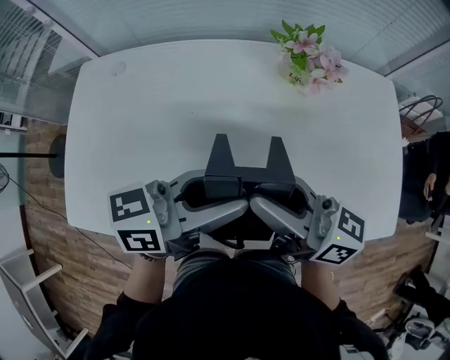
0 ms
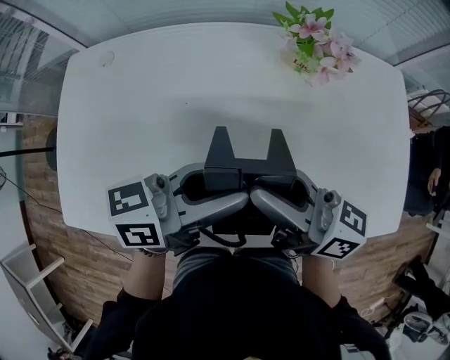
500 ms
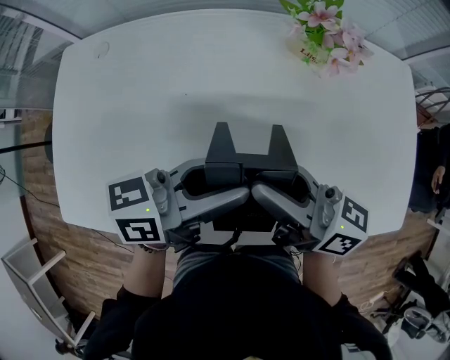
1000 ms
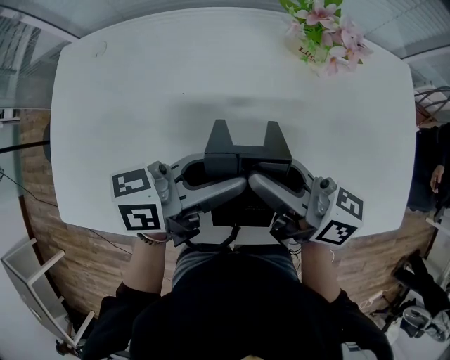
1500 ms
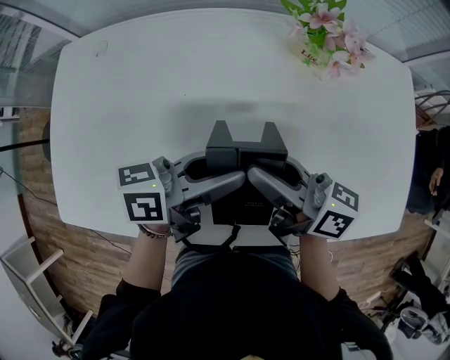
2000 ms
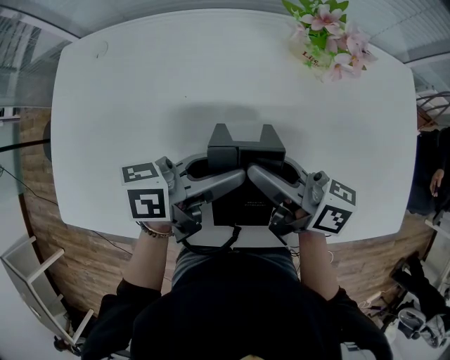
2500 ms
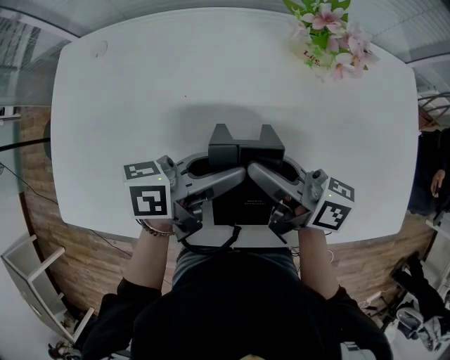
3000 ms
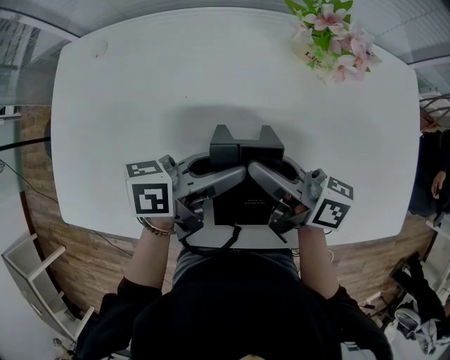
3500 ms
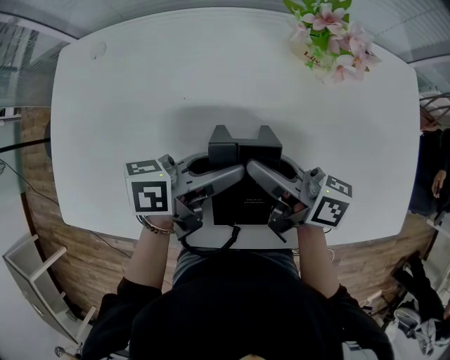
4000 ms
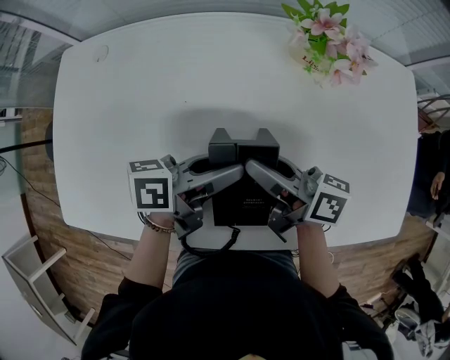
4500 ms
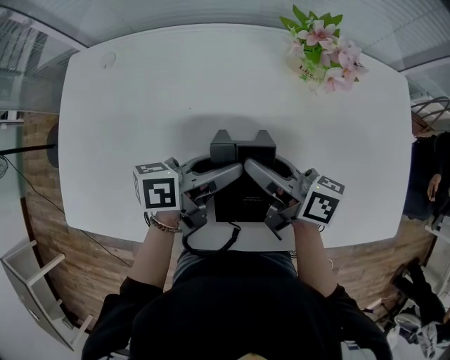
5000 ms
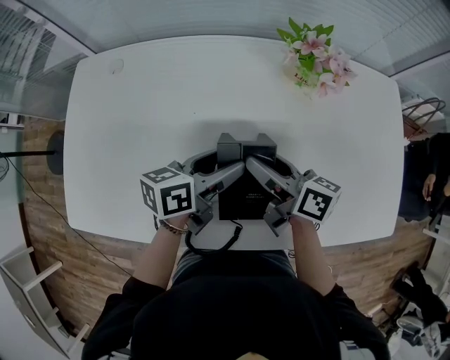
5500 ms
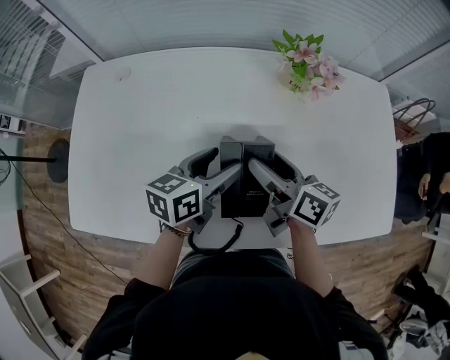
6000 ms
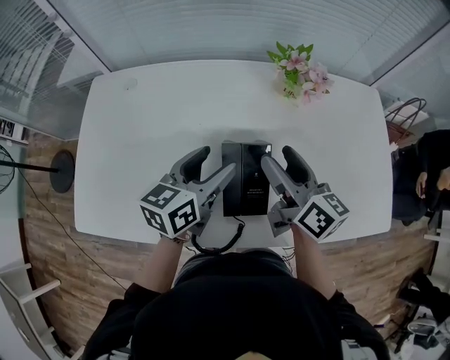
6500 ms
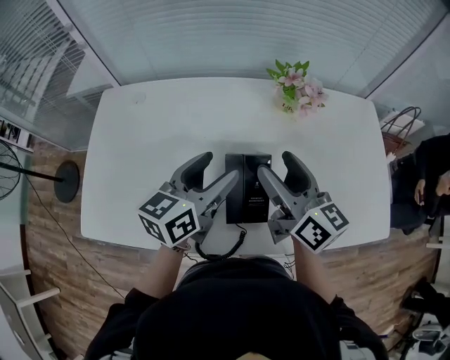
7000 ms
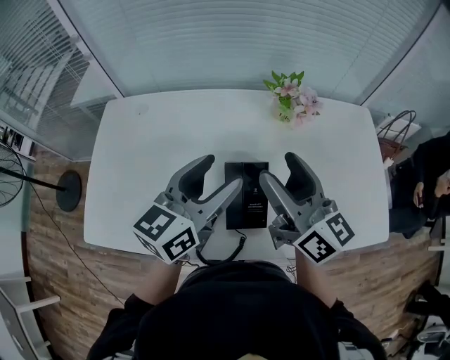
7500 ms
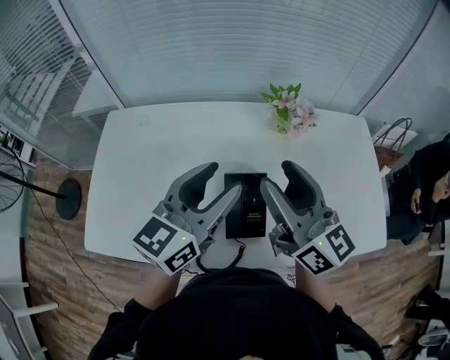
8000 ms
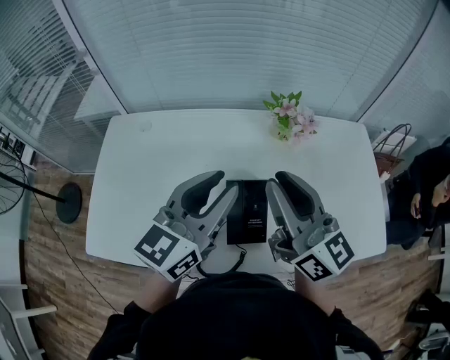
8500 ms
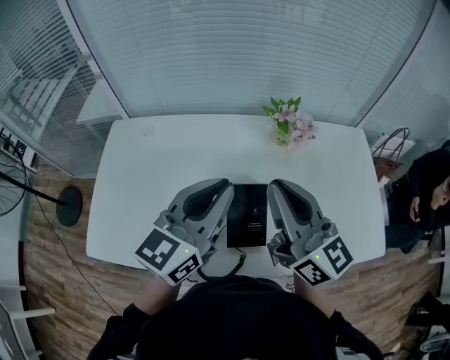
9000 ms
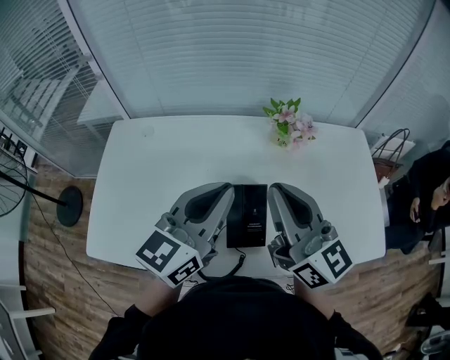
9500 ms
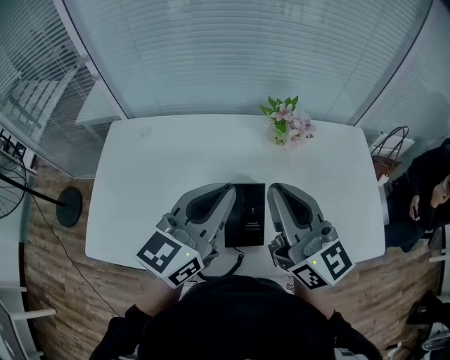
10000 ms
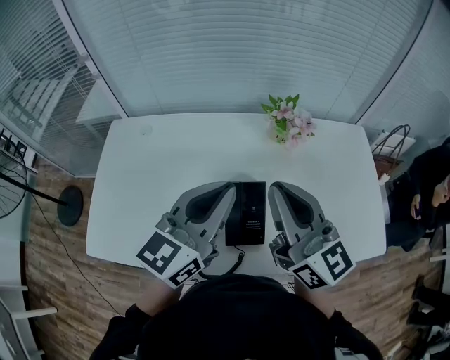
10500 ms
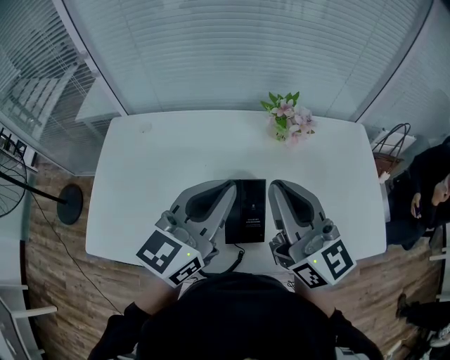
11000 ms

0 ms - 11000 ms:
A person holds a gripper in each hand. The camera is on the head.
0 ms - 2000 ms: Both grippers move downward, approximately 10 cm.
2000 ms - 5500 ms: There are only small adjustments of the grippers.
5500 ms - 7500 ms: The grippers both shift upward by about 20 cm. The left gripper changes its angle by about 40 degrees; the right gripper turns by approximately 40 degrees.
7500 ms - 9000 ms: The two grippers go about 5 cm upward. The left gripper closes; the right gripper closes.
9000 ms - 11000 ms: The grippers make only small movements.

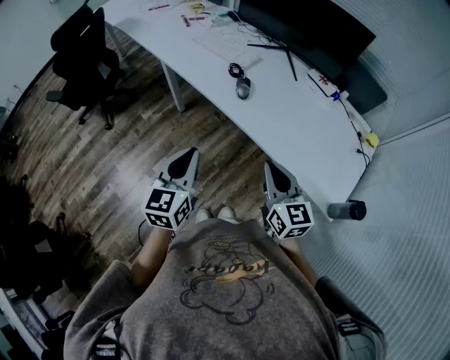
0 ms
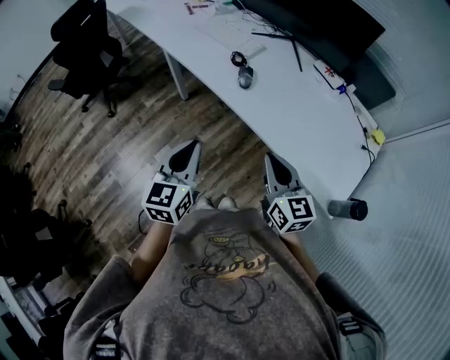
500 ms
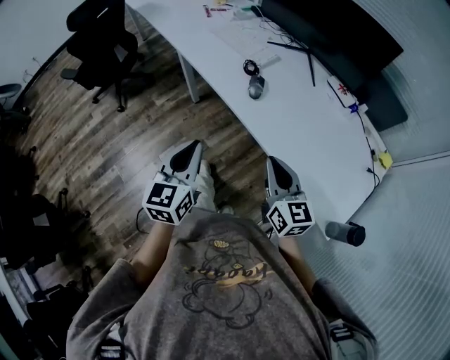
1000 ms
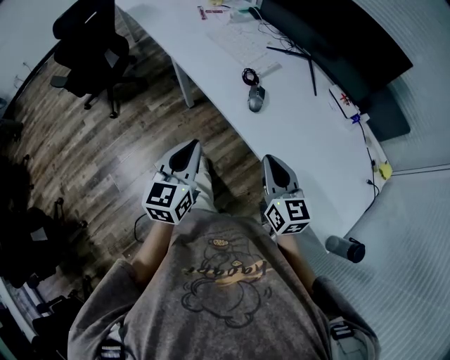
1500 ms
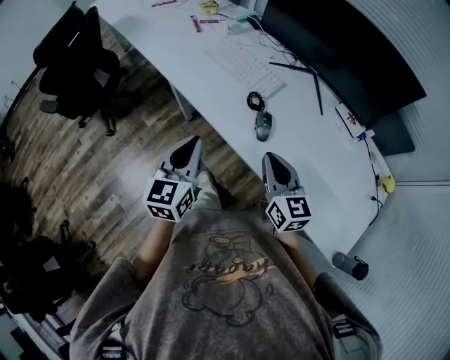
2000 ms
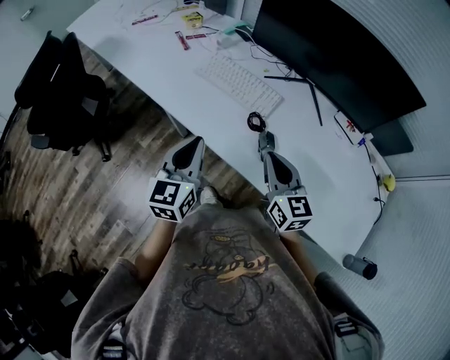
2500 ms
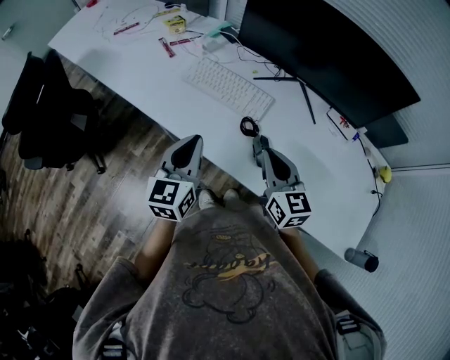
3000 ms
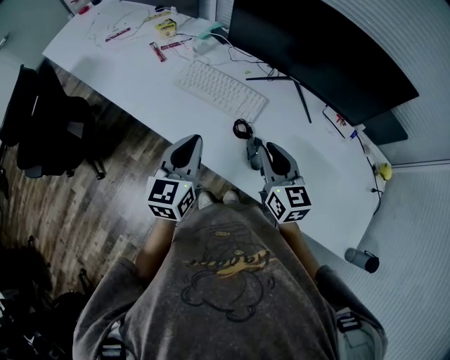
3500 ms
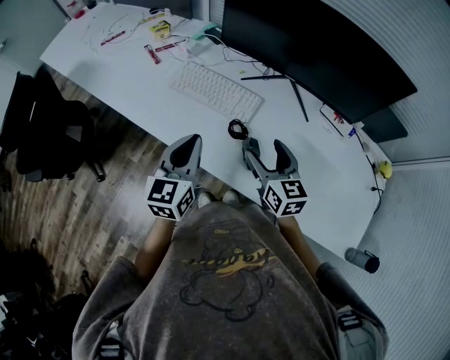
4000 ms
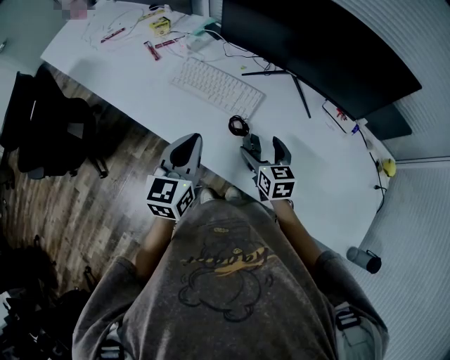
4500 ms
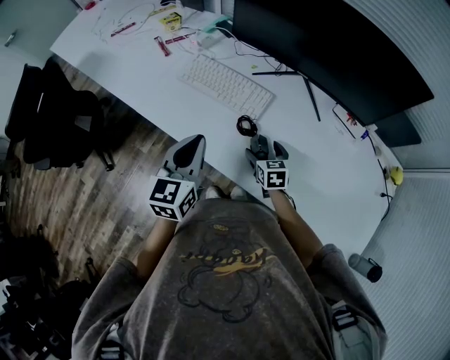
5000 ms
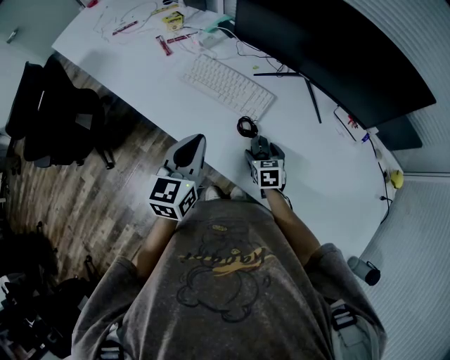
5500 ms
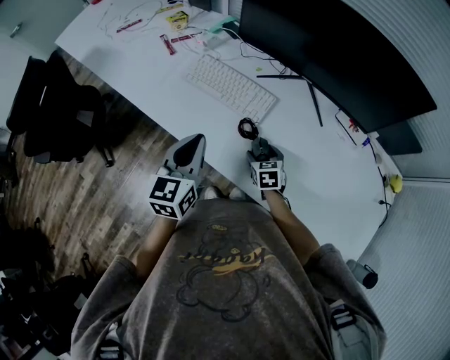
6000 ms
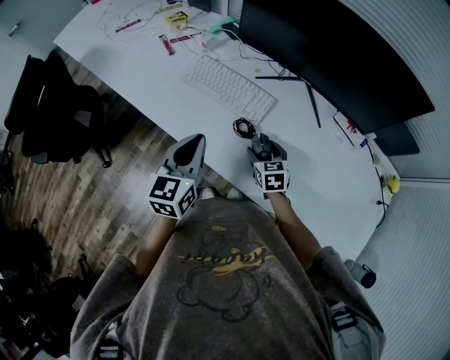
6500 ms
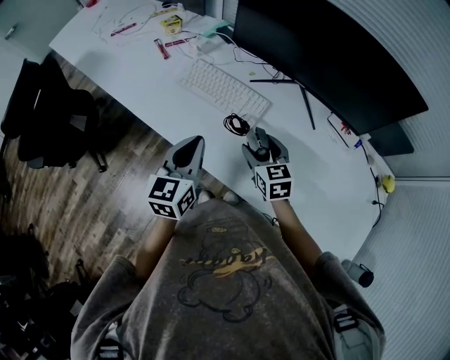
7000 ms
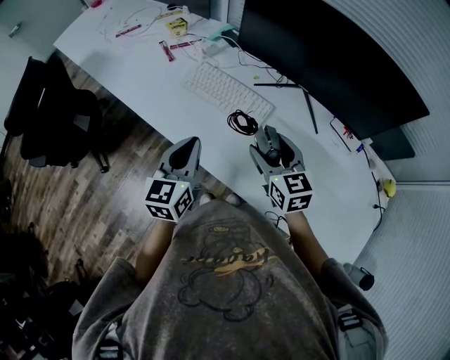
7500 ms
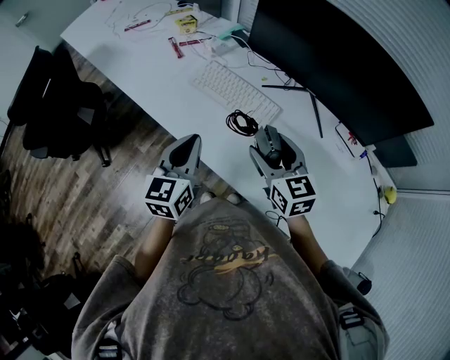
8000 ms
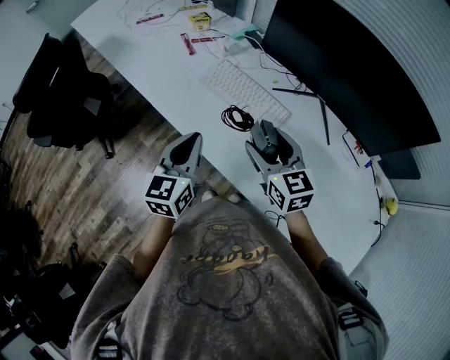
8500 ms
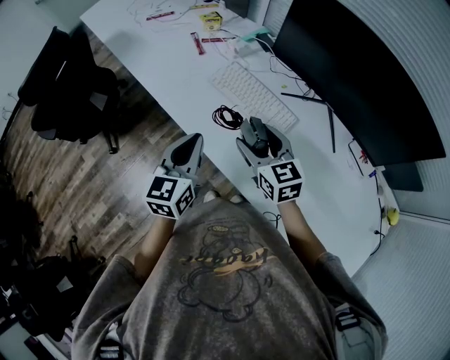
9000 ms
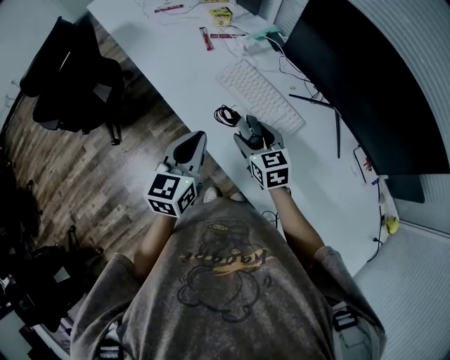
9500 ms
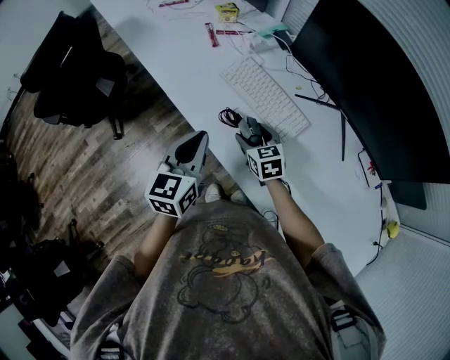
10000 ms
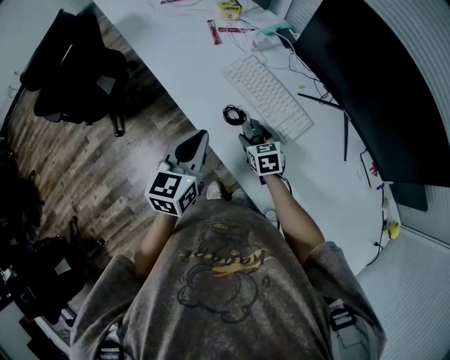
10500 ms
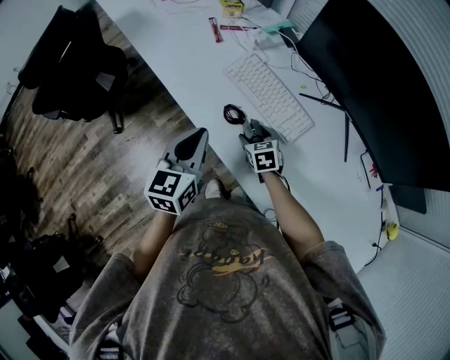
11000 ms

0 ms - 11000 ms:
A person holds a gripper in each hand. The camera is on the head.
0 ms - 2000 ms: Both grippers move forward, about 25 cm.
2000 ms - 3500 ms: The two grippers go roughly 15 cm forward.
3500 ms - 5500 ms: The right gripper heads downward, covering about 25 cm, angles its fingers downward, by some 30 degrees, and opens up.
5500 ms - 7500 ms: The right gripper shifts about 20 cm upward, and swivels approximately 30 degrees.
7500 ms - 9000 ms: The left gripper moves to the left, about 5 cm; the right gripper travels to the left and forward by approximately 10 cm.
9000 ms - 11000 ms: The right gripper is displaced downward by approximately 20 cm, and rotates about 30 degrees.

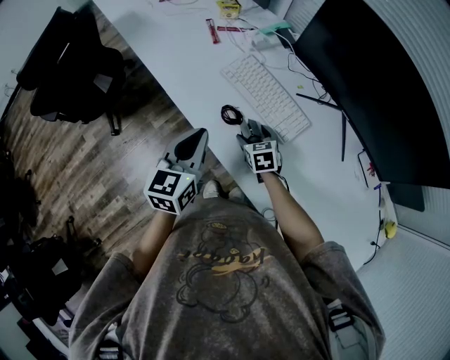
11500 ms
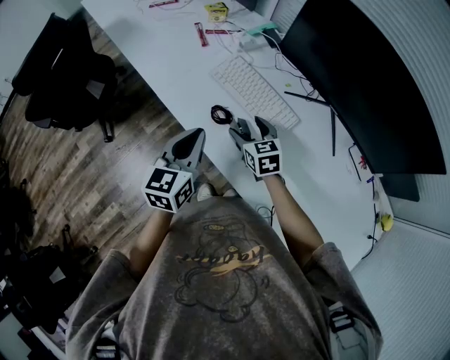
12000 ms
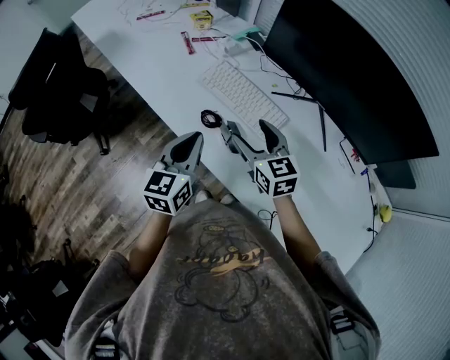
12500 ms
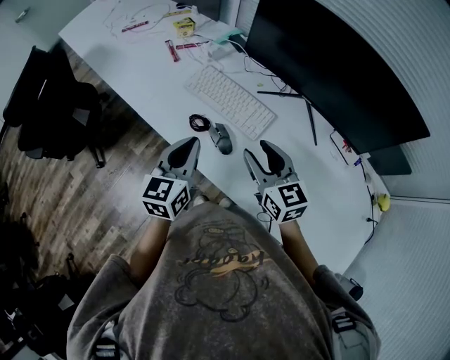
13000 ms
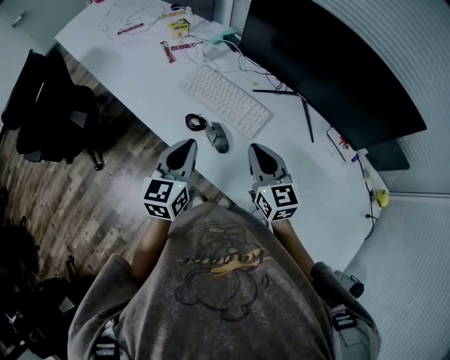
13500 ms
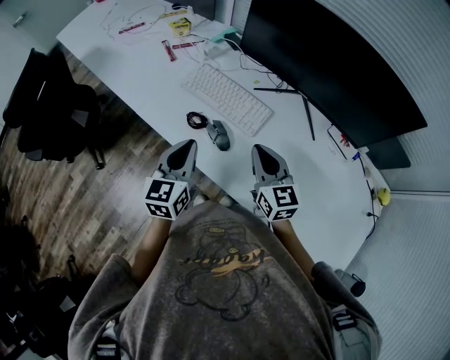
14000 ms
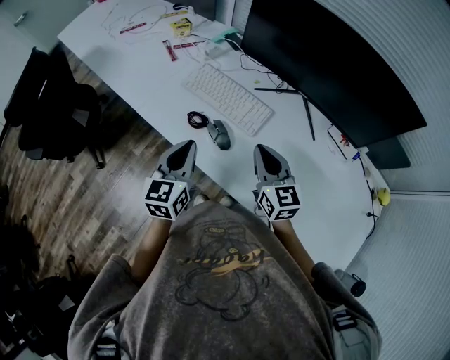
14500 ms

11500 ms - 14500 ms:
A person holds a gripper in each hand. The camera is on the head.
11500 ms - 13000 ms: The left gripper shifts approximately 5 cm to the right, while the right gripper travels upward and backward by about 25 cm, tilts its fingers about 30 degrees upward, and closes.
13000 ms - 14500 ms: The right gripper closes up.

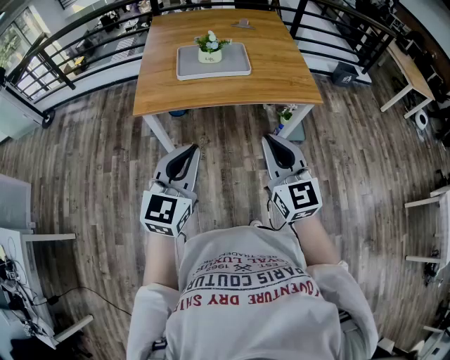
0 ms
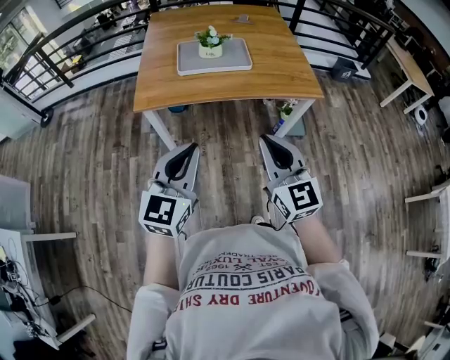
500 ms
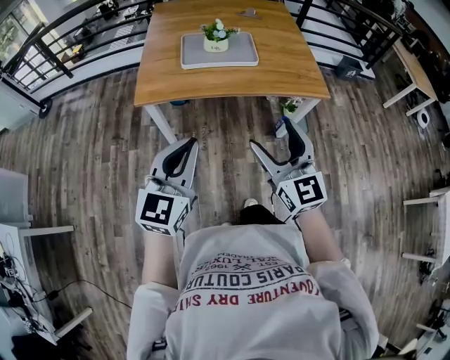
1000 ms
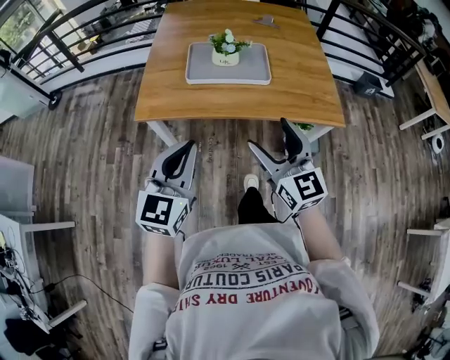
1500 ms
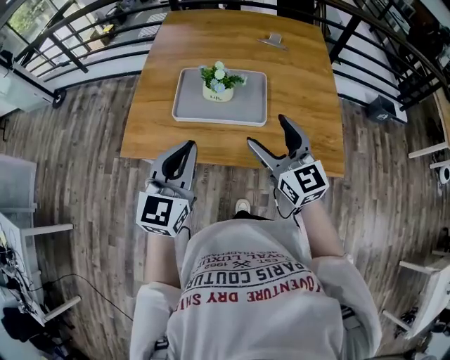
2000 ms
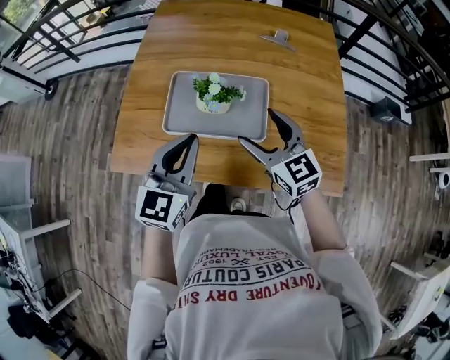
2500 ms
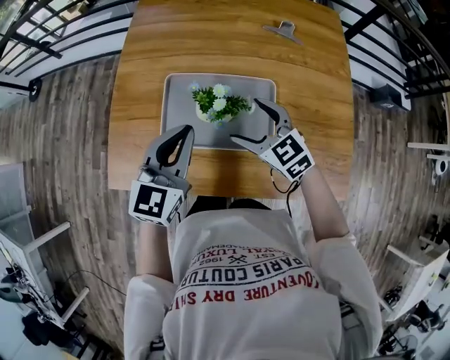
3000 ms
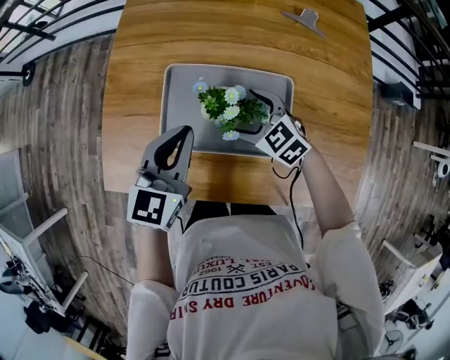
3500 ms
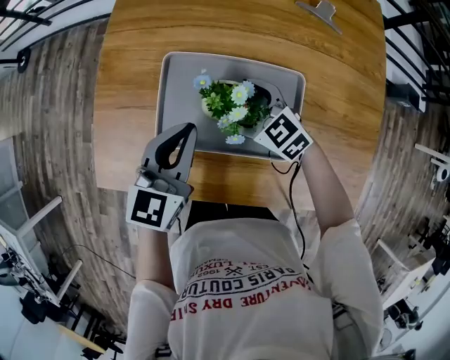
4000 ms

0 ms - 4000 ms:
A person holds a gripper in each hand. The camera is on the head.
0 ms - 2000 ms: The two grippers go about 35 cm forward. The right gripper swivels roughly 20 degrees, and opens.
2000 ms - 4000 ms: The grippers both shift forward and downward by roughly 30 cm. The right gripper points its fingers roughly 30 degrees further downward.
